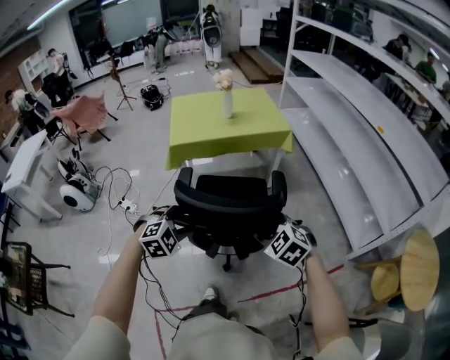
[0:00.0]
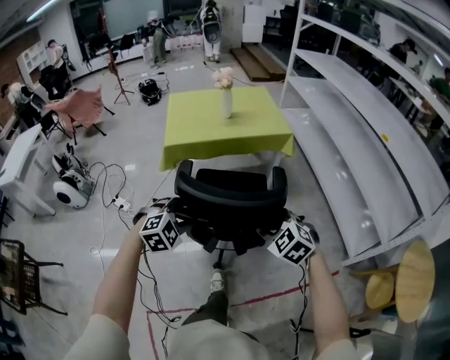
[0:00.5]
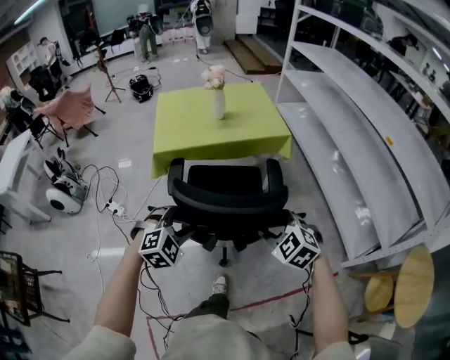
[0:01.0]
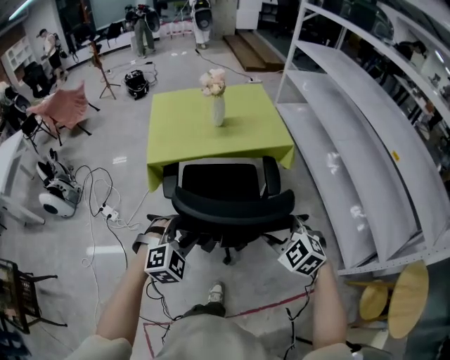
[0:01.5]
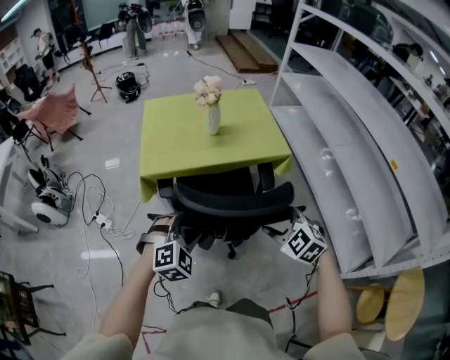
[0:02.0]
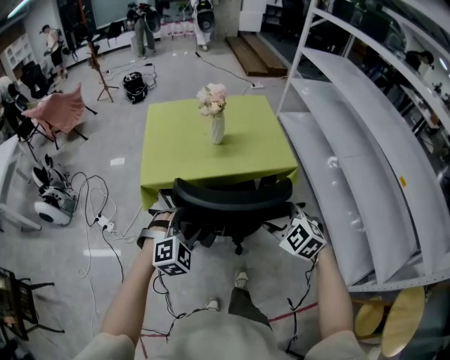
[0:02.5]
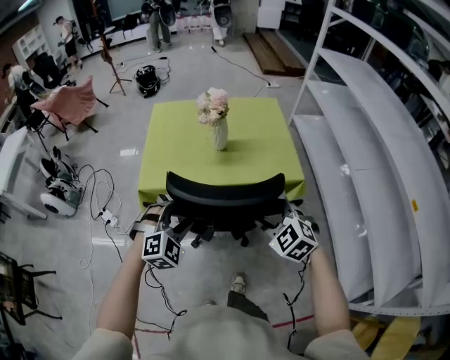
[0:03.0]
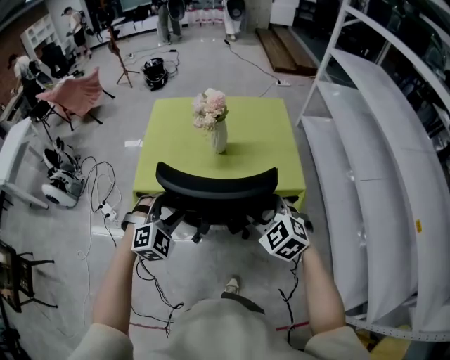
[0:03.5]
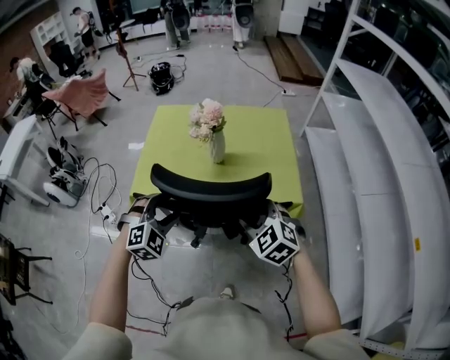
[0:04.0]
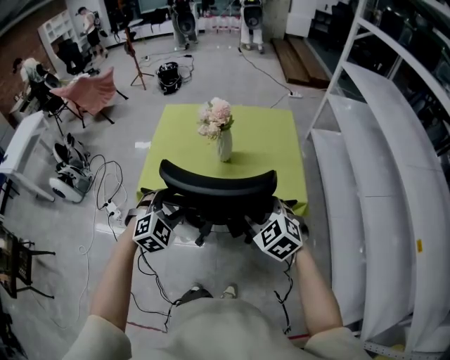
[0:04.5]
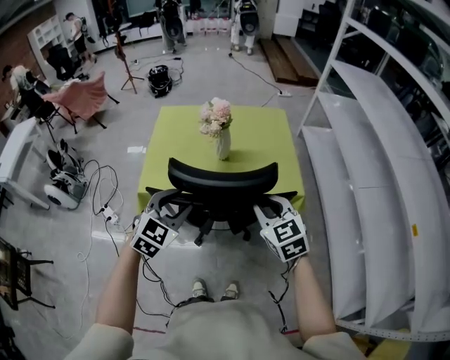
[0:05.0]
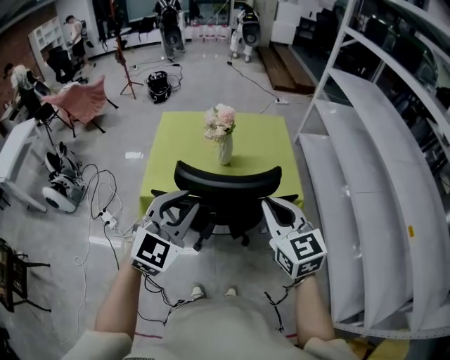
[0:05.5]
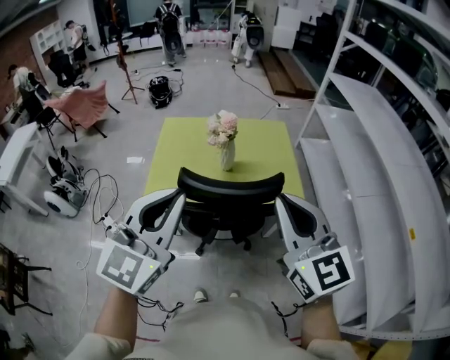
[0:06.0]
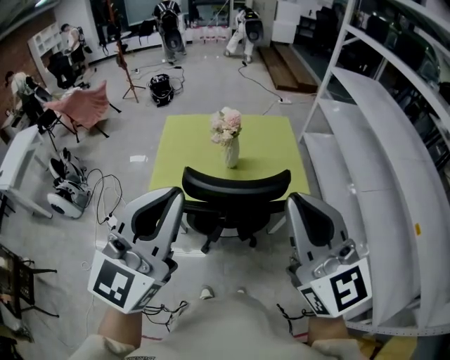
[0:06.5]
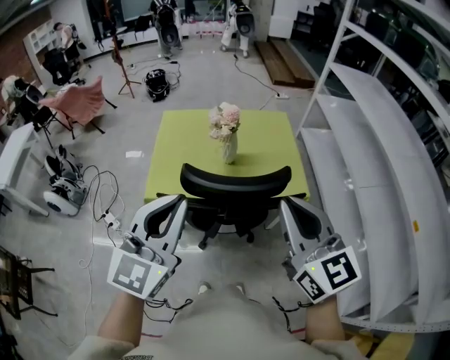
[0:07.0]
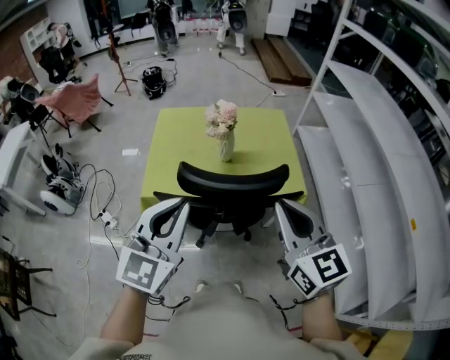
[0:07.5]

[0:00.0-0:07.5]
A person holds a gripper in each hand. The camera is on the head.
0:00.0 to 0:02.0: Both grippers travel together forward, approximately 30 cm.
0:02.0 to 0:04.0: Both grippers travel together forward, approximately 25 cm.
0:04.0 to 0:05.5: The right gripper moves upward, approximately 15 cm, turns by approximately 40 degrees, and closes; the left gripper goes approximately 20 cm upward and backward, rotates roughly 40 degrees, and closes up.
0:05.5 to 0:07.5: The right gripper moves upward, about 5 cm; the left gripper reaches about 15 cm upward, then returns.

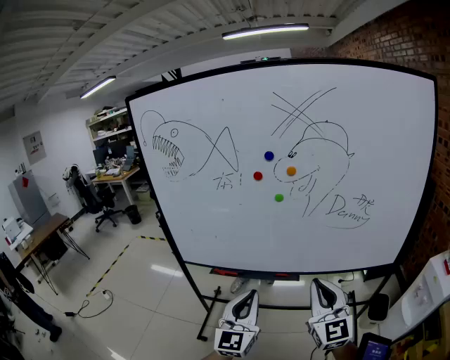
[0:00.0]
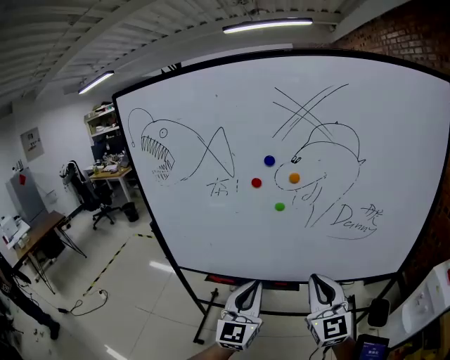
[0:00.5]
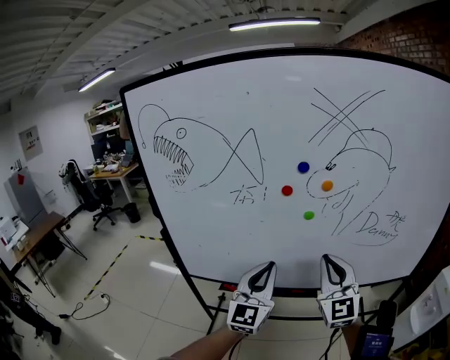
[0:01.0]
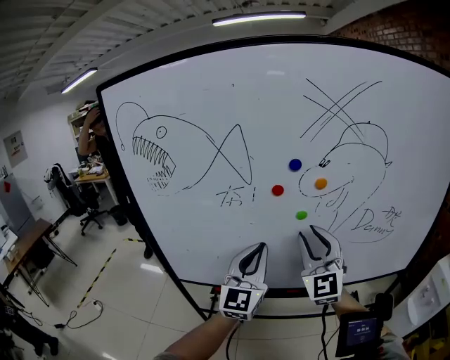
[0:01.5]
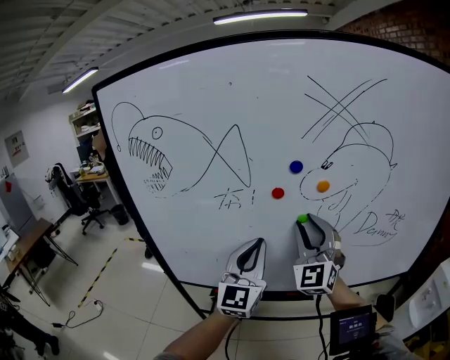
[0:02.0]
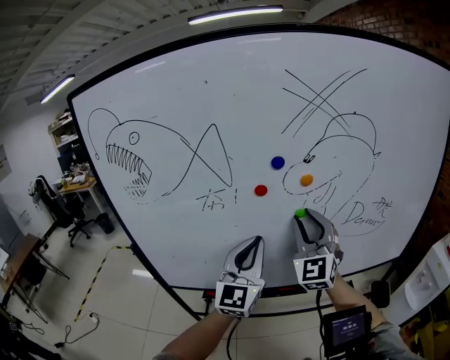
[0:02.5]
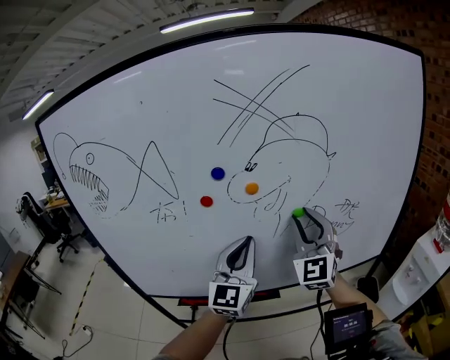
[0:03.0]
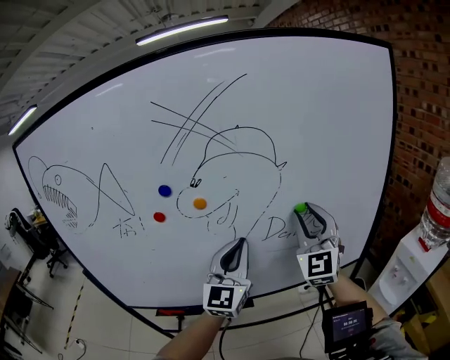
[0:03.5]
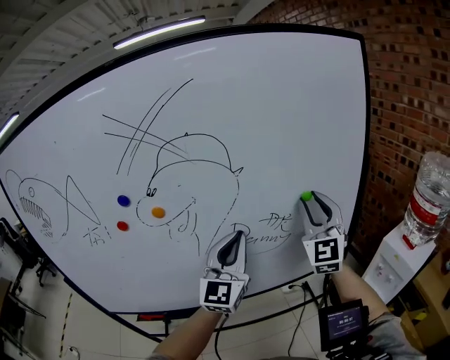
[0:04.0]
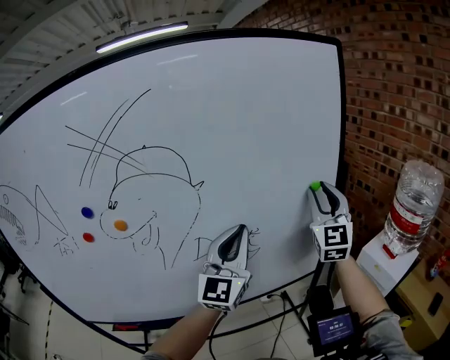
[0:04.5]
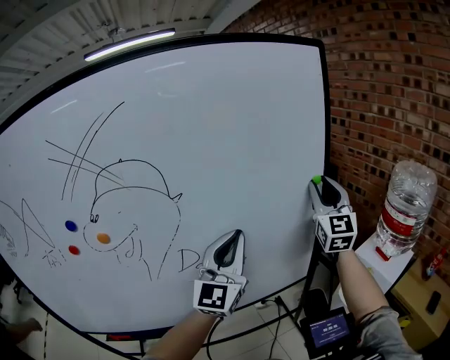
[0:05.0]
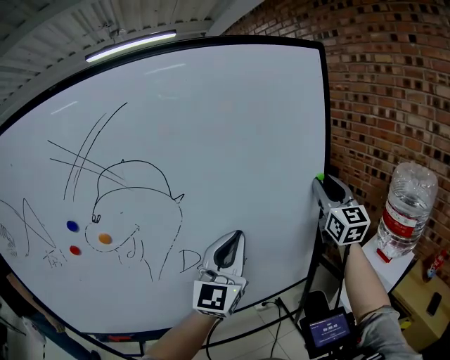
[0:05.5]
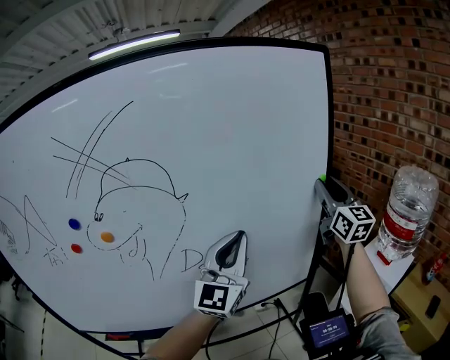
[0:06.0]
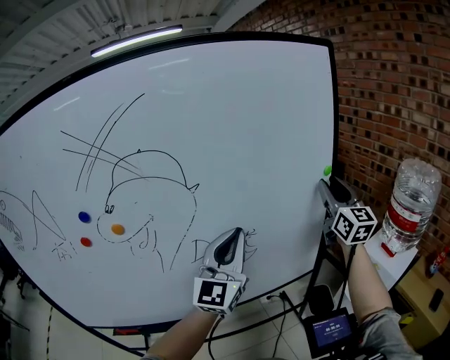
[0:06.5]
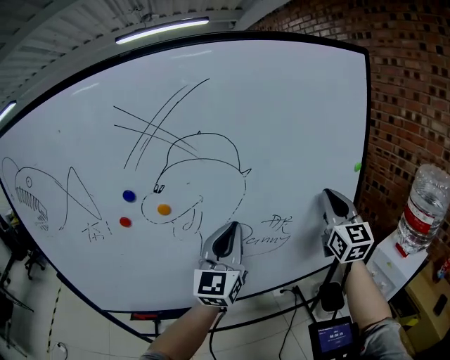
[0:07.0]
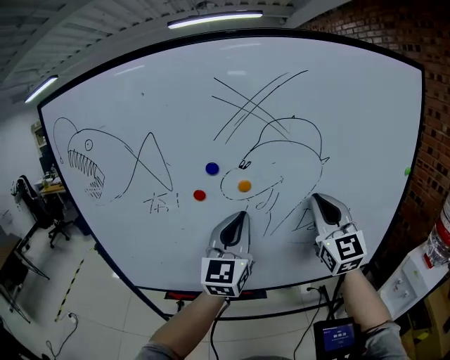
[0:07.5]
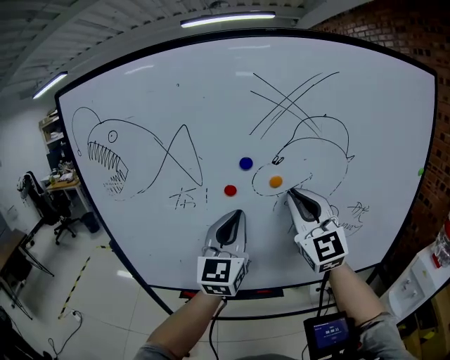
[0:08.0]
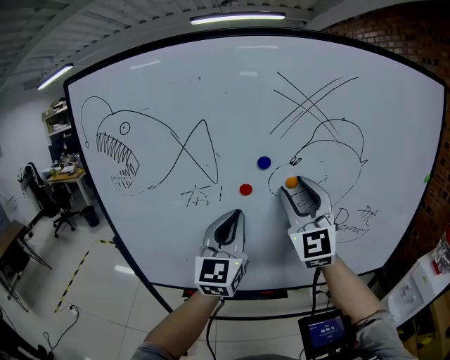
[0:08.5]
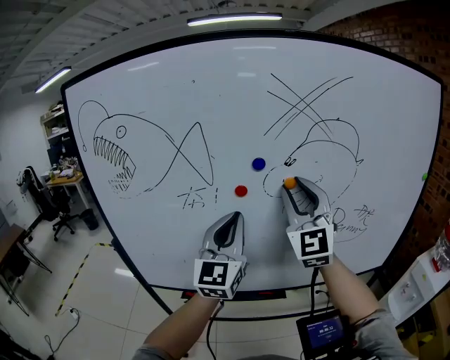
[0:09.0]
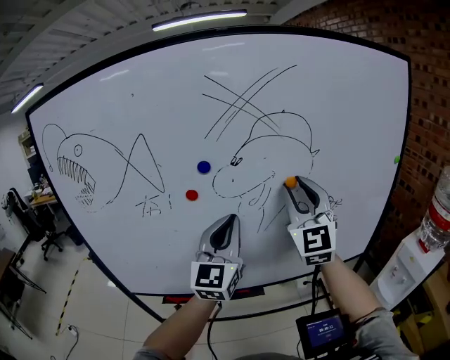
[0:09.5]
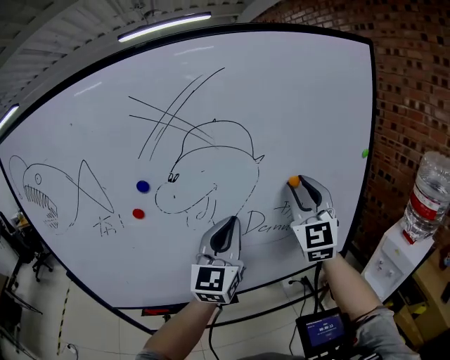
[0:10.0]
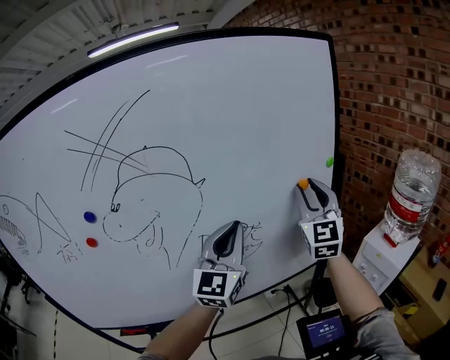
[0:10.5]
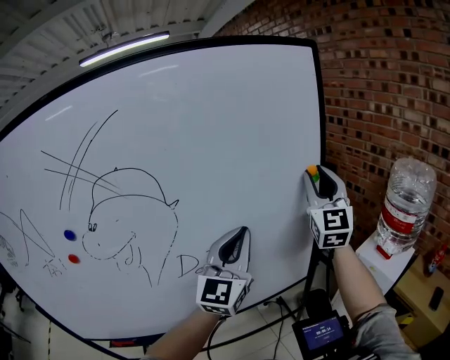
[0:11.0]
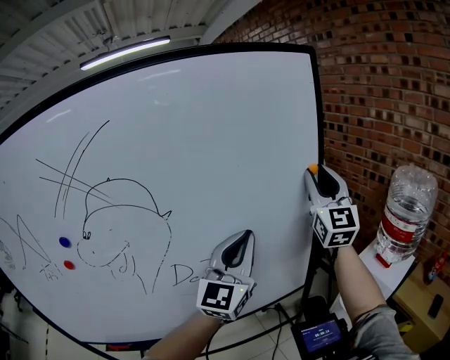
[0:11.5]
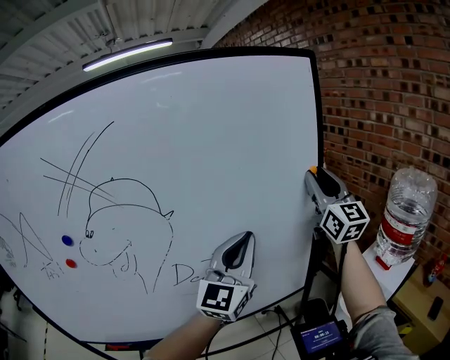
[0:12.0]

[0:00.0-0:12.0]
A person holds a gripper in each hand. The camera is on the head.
0:00.0 to 0:02.0: Both grippers travel together forward, about 25 cm. The right gripper turns by some 30 degrees, and opens up.
0:02.0 to 0:04.0: Both grippers move to the right, roughly 35 cm.
0:04.0 to 0:06.0: The left gripper shifts approximately 15 cm to the right and forward. Meanwhile the right gripper moves to the right and forward, some 20 cm, and swivels some 30 degrees.
0:06.0 to 0:08.0: The right gripper shifts by approximately 50 cm, swivels about 30 degrees, and closes its fingers; the left gripper moves approximately 40 cm, and swivels approximately 30 degrees.
0:08.0 to 0:10.0: Both grippers move to the right, approximately 20 cm. The right gripper rotates roughly 30 degrees, and opens.
0:10.0 to 0:12.0: The two grippers go about 25 cm to the right and forward. The right gripper changes its angle by roughly 20 degrees.

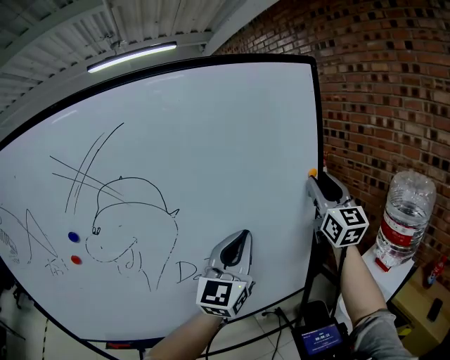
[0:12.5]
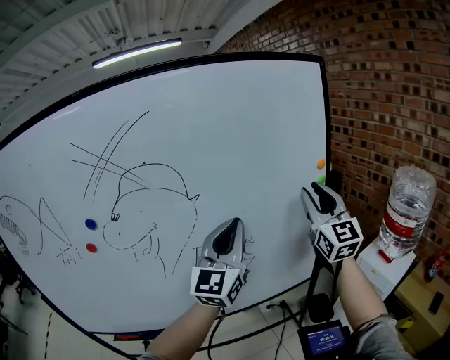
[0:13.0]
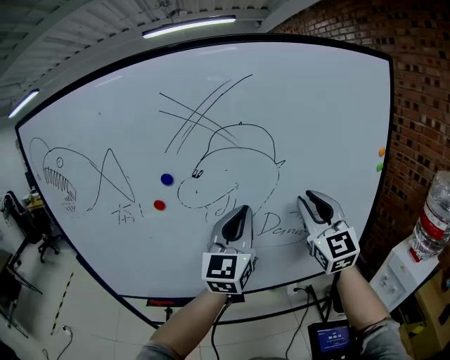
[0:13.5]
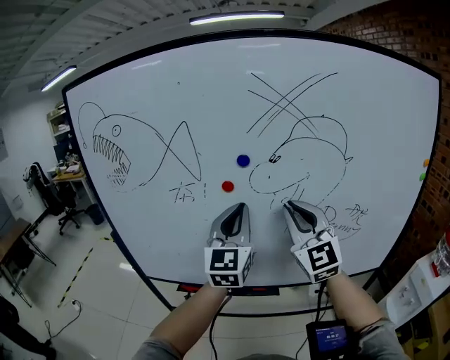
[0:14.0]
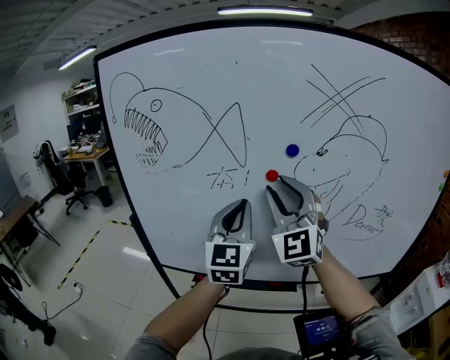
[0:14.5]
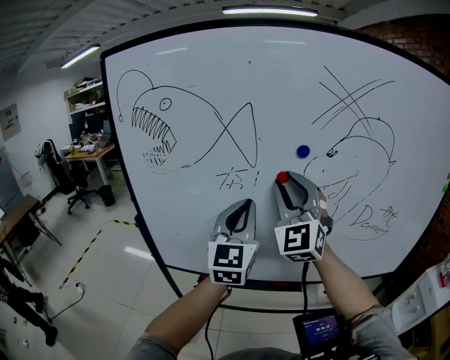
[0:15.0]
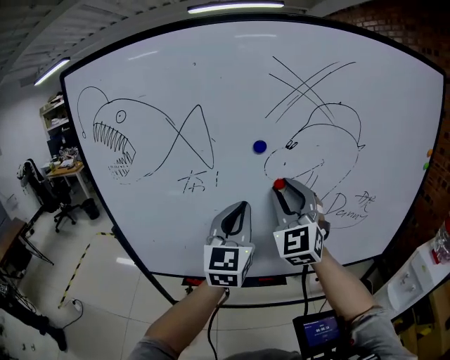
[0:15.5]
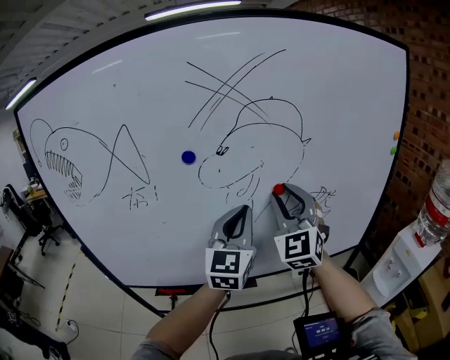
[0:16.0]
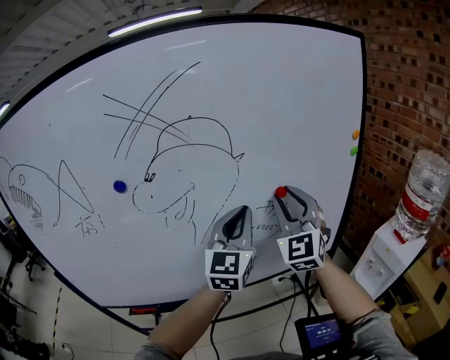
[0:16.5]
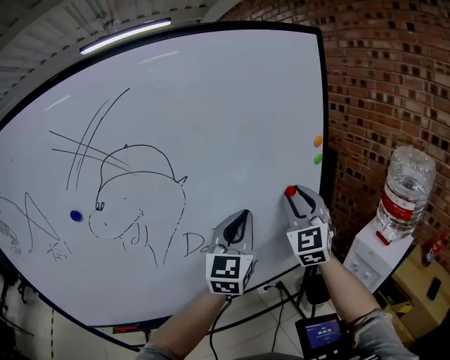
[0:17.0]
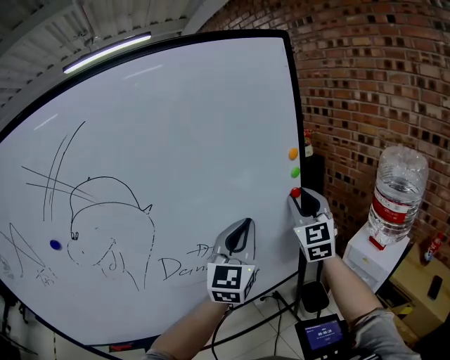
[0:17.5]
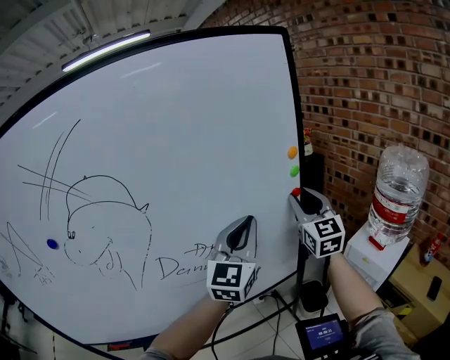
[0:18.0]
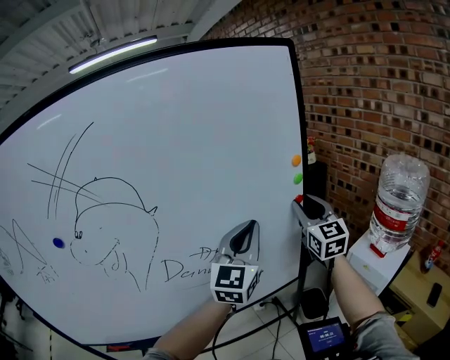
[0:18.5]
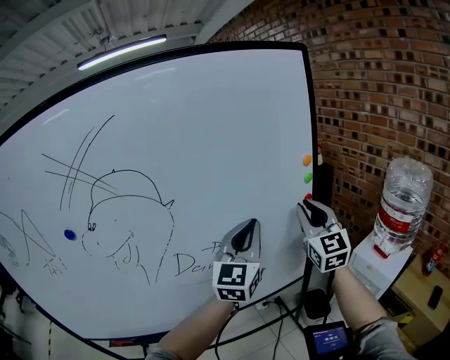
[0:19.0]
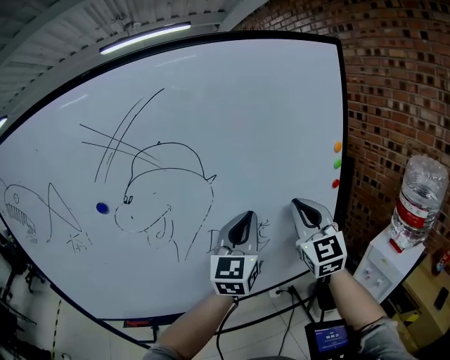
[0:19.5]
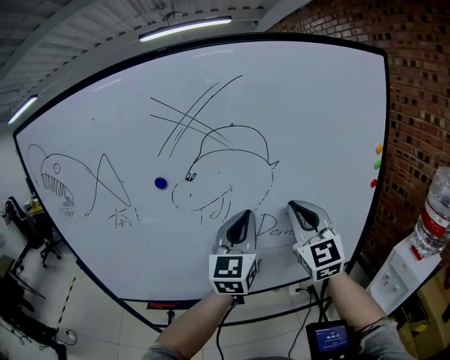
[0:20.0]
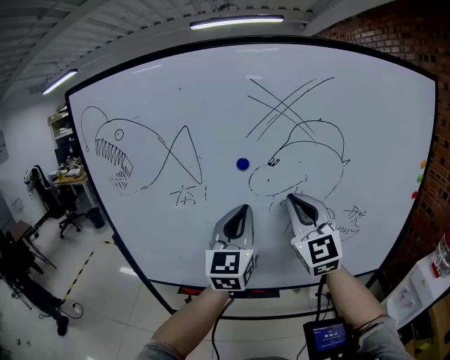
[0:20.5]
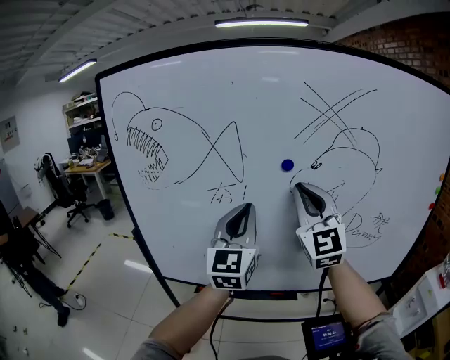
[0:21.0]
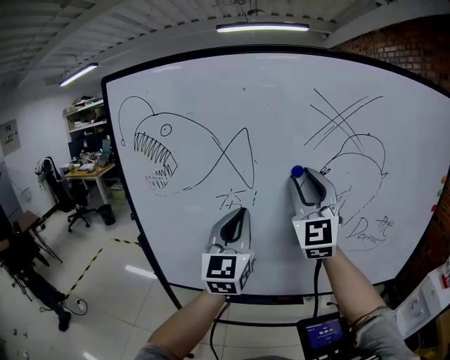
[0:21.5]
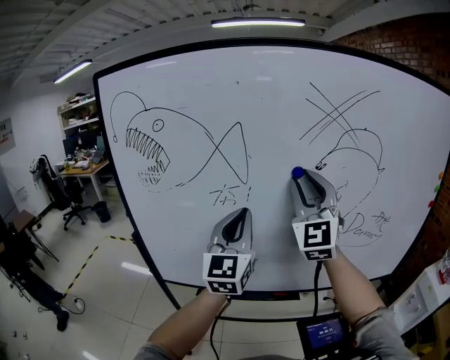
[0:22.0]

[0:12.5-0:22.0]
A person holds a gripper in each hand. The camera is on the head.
0:12.5 to 0:14.5: The pair of grippers is taken some 60 cm. The left gripper swivels about 40 degrees, while the right gripper rotates approximately 40 degrees, and closes, then opens again.
0:14.5 to 0:16.5: The right gripper changes place by some 40 cm, and changes its angle by roughly 30 degrees; the left gripper ends up approximately 35 cm from where it was, and rotates approximately 30 degrees.
0:16.5 to 0:18.0: Both grippers travel together to the right and forward, roughly 25 cm. The right gripper rotates approximately 20 degrees.
0:18.0 to 0:20.0: Both grippers move to the left and backward, some 30 cm. The left gripper rotates approximately 20 degrees, while the right gripper swivels roughly 20 degrees, and closes its fingers.
0:20.0 to 0:22.0: The grippers both shift to the left by approximately 30 cm. The right gripper opens up.
